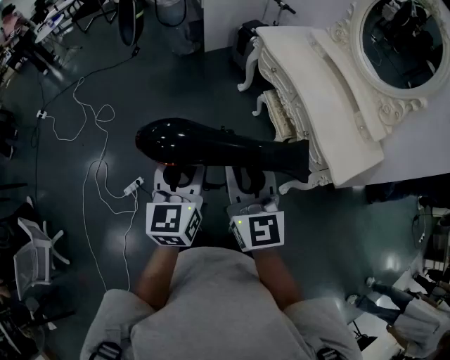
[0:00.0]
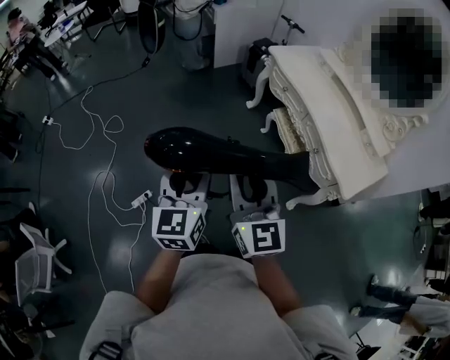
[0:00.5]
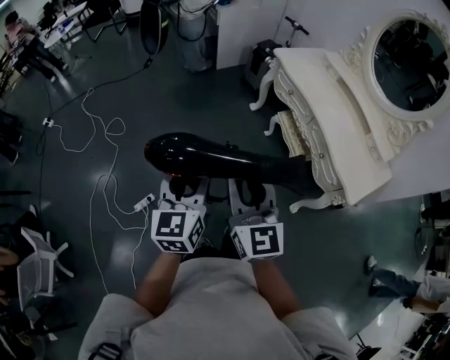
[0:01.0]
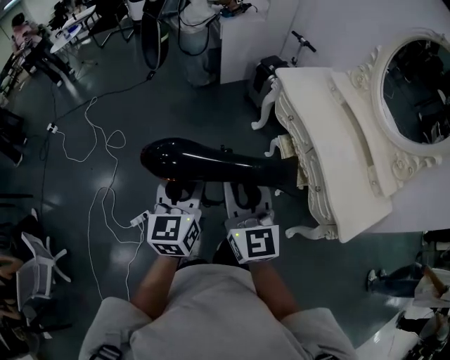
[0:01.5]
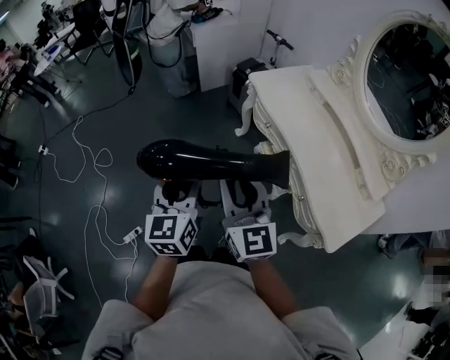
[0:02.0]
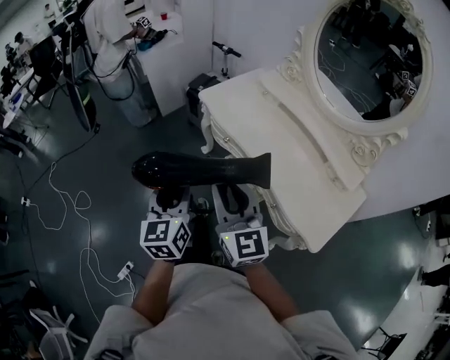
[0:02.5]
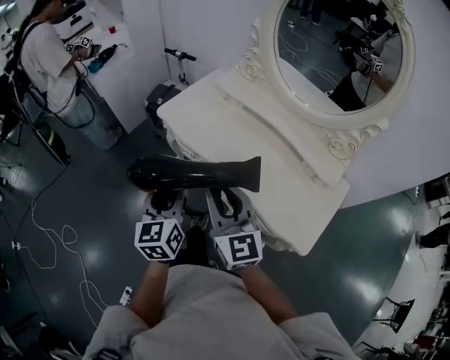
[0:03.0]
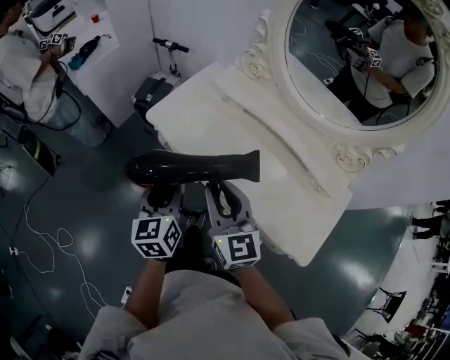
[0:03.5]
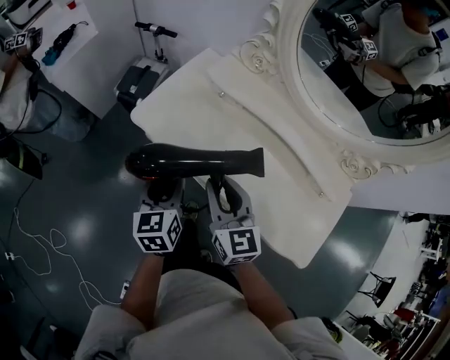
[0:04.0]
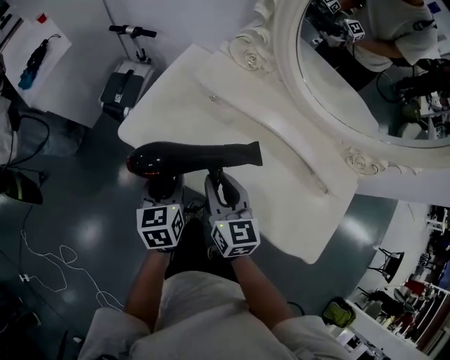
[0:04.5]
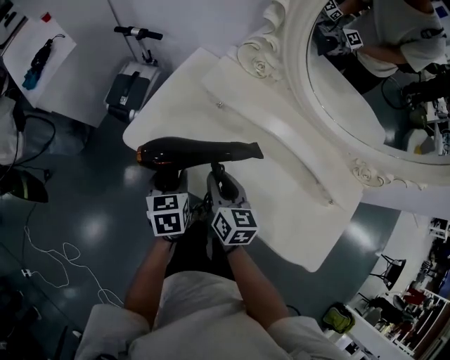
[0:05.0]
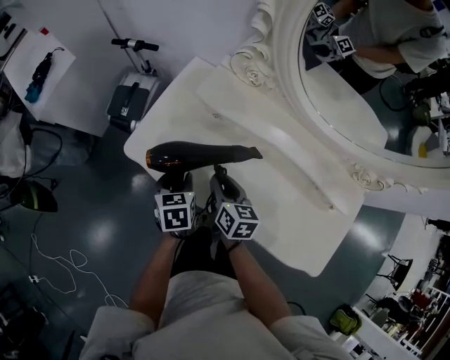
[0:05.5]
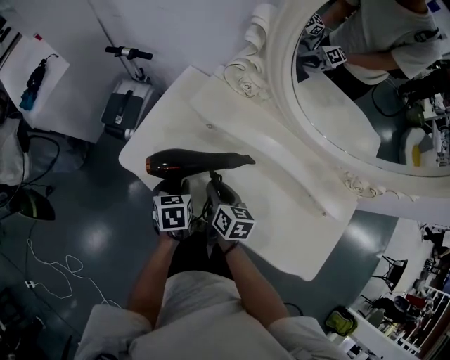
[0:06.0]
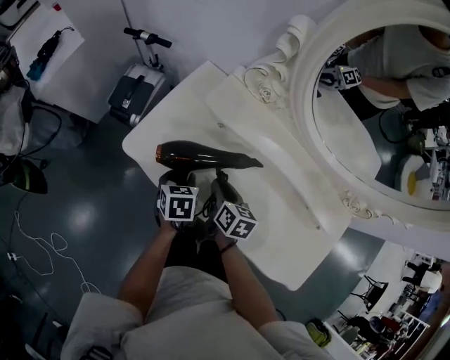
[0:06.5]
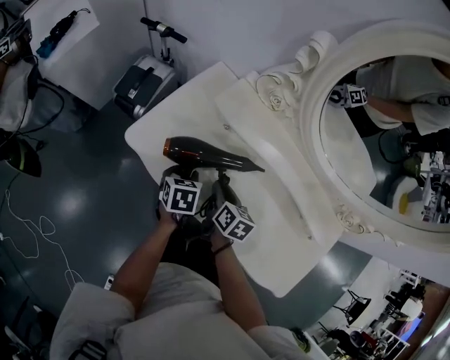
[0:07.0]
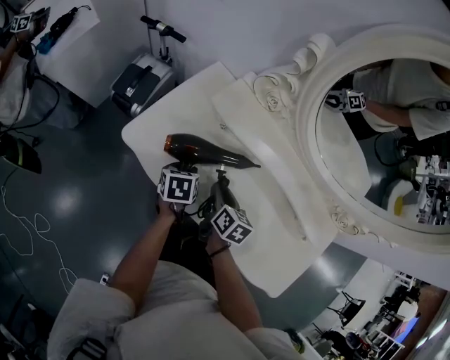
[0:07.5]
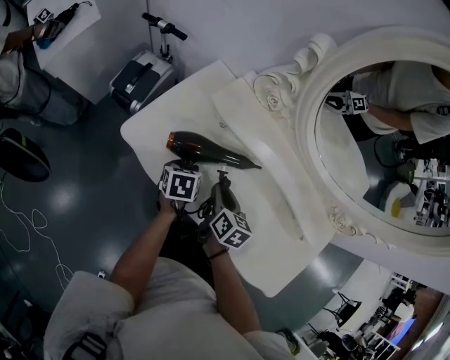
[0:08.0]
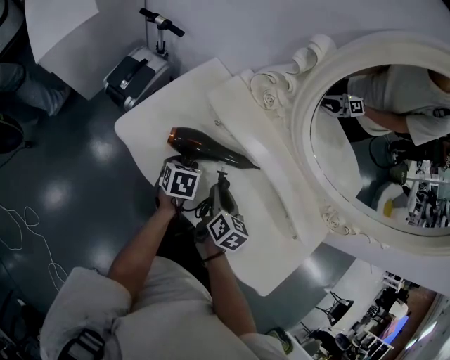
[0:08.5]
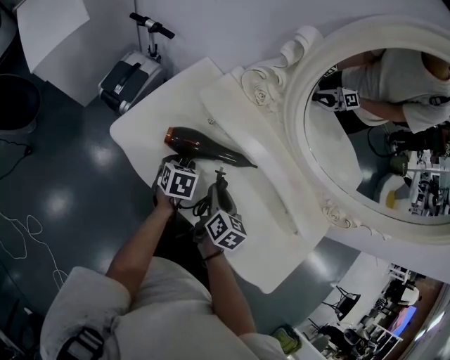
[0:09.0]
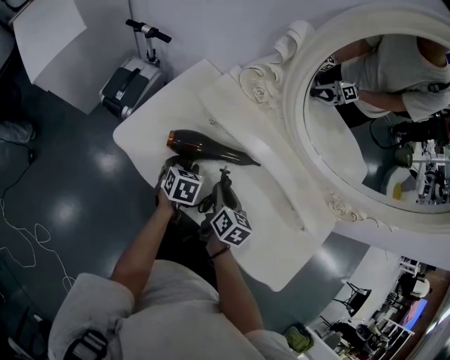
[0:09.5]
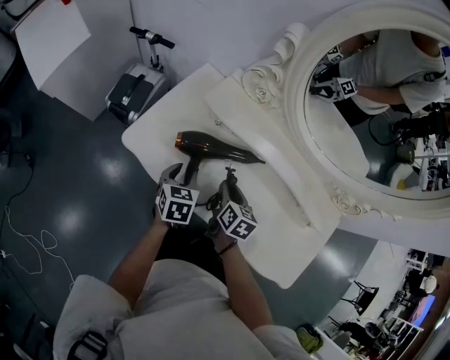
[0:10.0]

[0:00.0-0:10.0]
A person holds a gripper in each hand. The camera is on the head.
0.0 to 2.0 s: Both grippers travel together forward, approximately 25 cm.
2.0 to 4.0 s: Both grippers are carried some 40 cm. The left gripper rotates roughly 30 degrees. Meanwhile the right gripper rotates approximately 40 degrees.
4.0 to 6.0 s: Both grippers move downward and forward, about 20 cm. The right gripper changes its angle by about 40 degrees, while the left gripper swivels approximately 30 degrees.
6.0 to 8.0 s: There are only small adjustments of the grippers.
8.0 to 10.0 s: The left gripper travels upward by approximately 5 cm, and changes its angle by roughly 20 degrees.

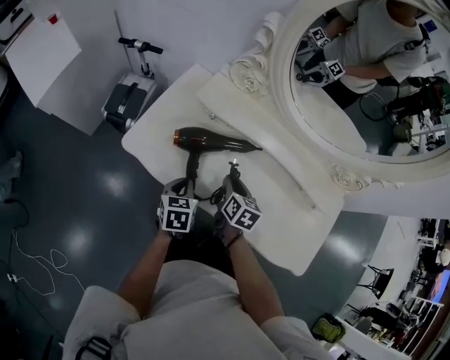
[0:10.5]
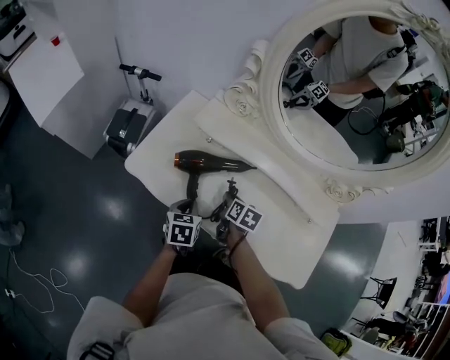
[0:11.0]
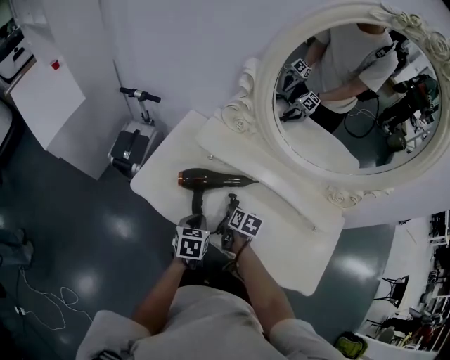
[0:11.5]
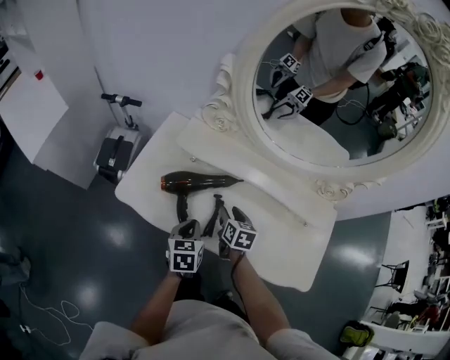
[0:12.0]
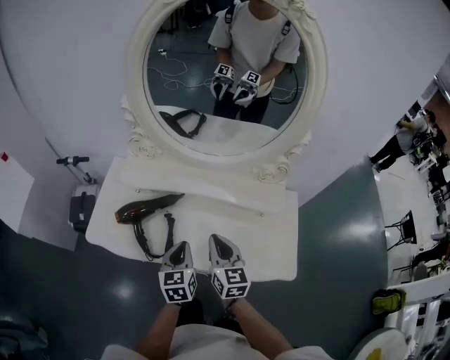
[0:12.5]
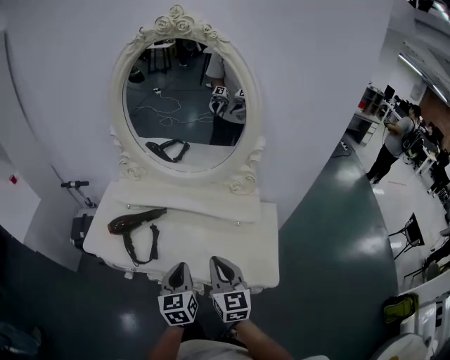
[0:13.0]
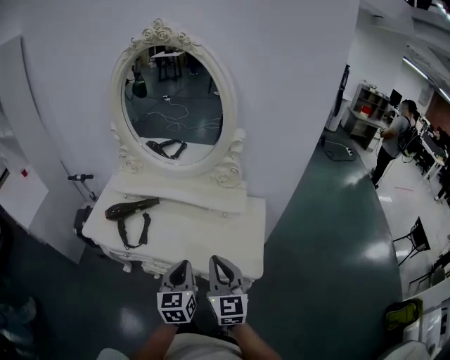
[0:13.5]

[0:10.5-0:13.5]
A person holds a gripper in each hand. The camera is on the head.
10.5 to 12.0 s: The right gripper opens up, while the left gripper travels to the right by roughly 5 cm.
12.0 to 13.5 s: The right gripper moves backward, to the right and upward, some 50 cm, tilts its fingers about 40 degrees upward, and closes. Meanwhile the left gripper moves to the right, backward and upward, roughly 40 cm, and changes its angle by about 30 degrees.

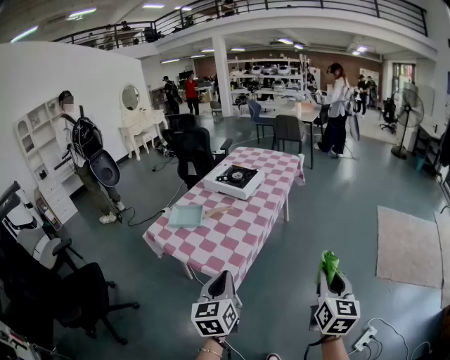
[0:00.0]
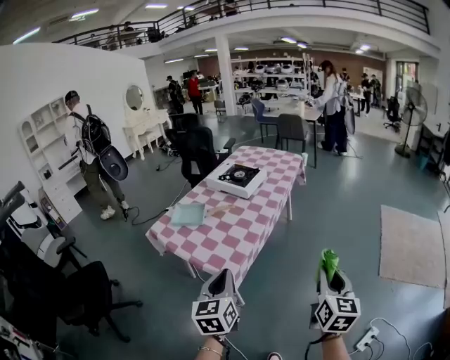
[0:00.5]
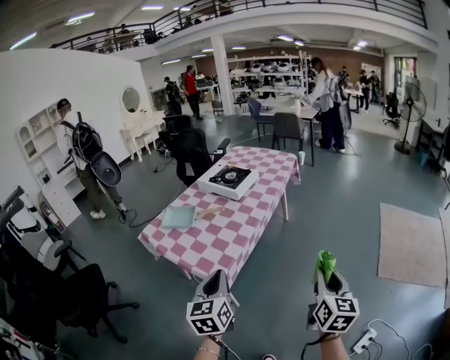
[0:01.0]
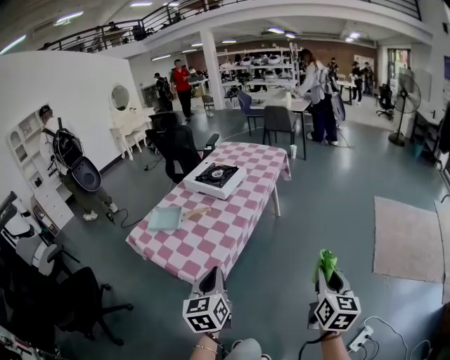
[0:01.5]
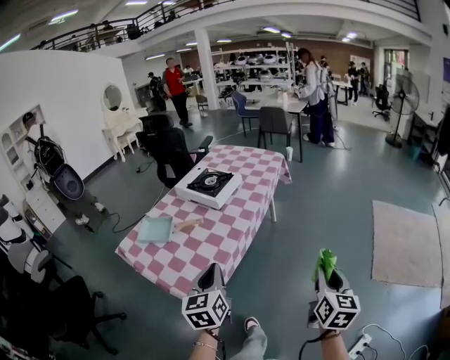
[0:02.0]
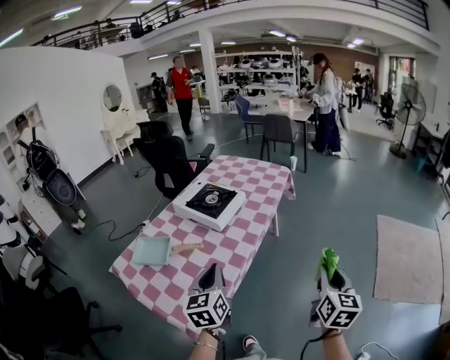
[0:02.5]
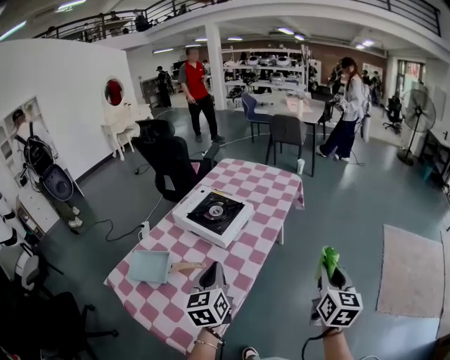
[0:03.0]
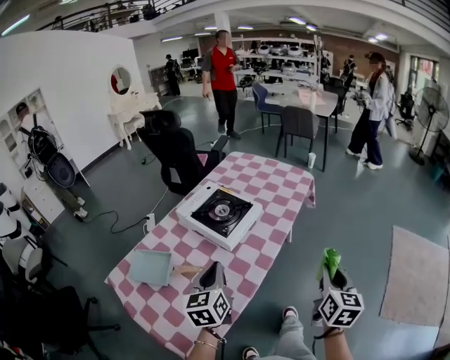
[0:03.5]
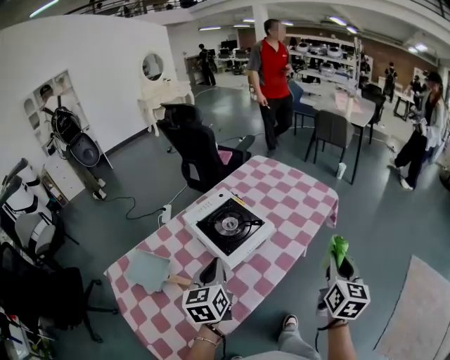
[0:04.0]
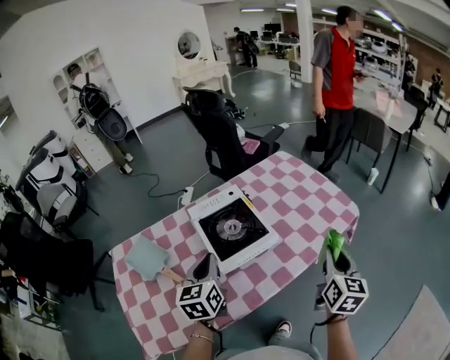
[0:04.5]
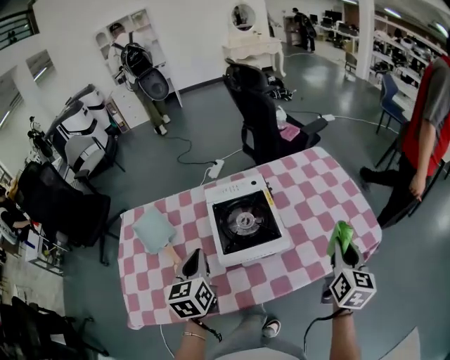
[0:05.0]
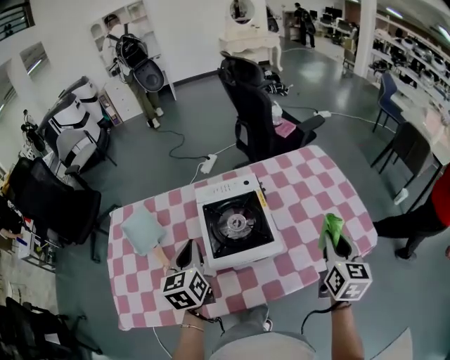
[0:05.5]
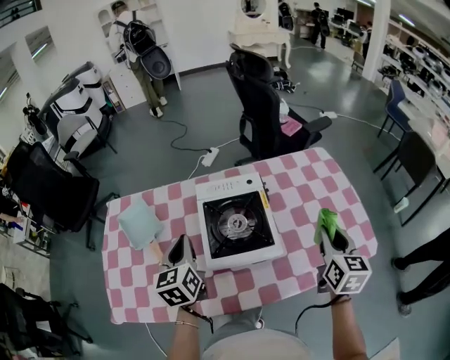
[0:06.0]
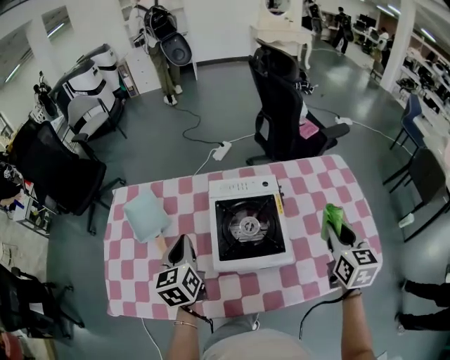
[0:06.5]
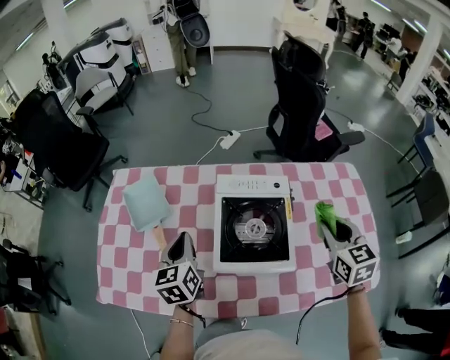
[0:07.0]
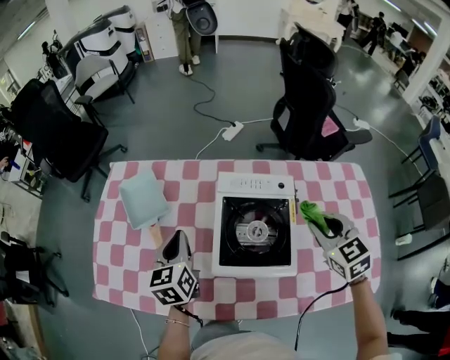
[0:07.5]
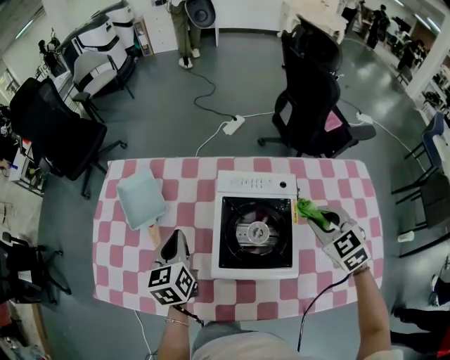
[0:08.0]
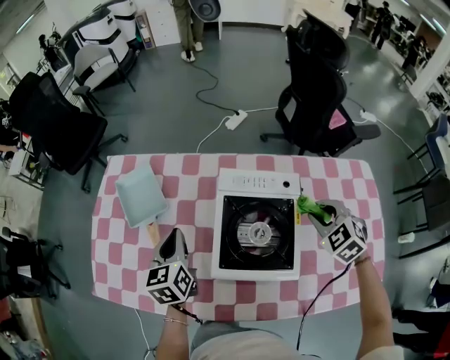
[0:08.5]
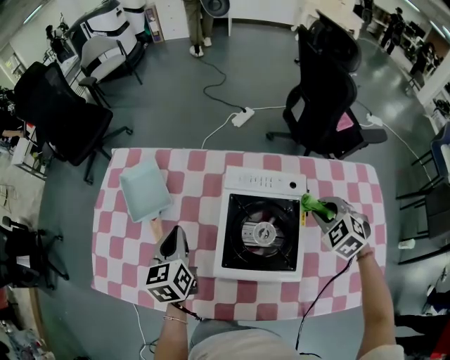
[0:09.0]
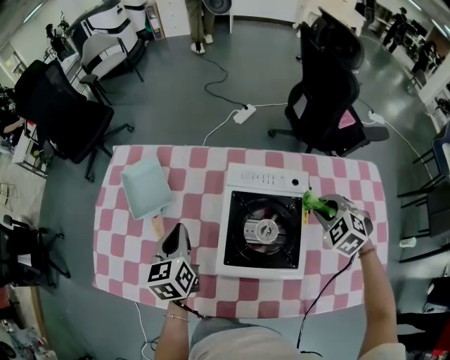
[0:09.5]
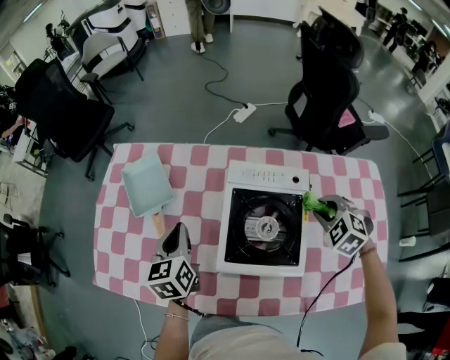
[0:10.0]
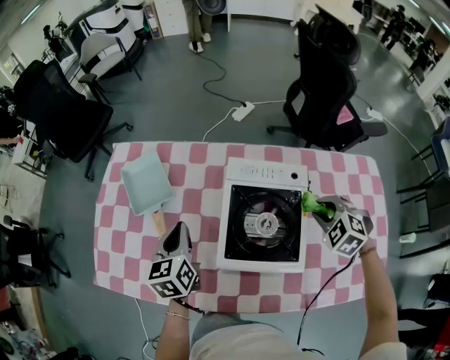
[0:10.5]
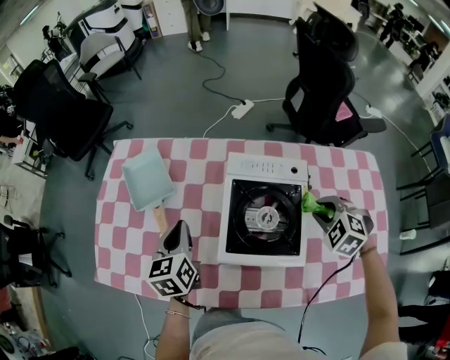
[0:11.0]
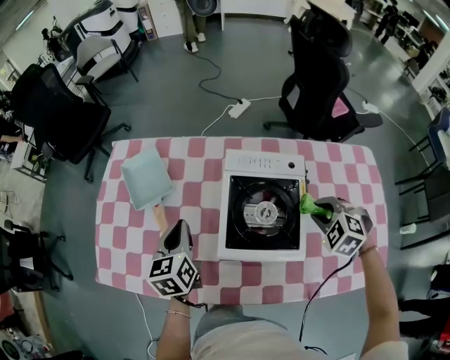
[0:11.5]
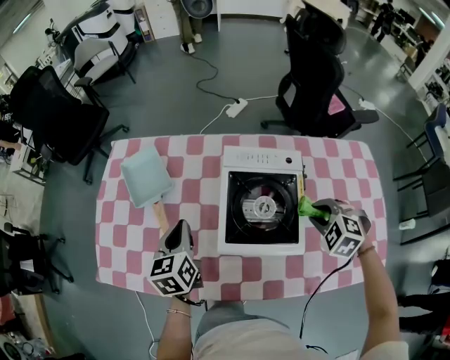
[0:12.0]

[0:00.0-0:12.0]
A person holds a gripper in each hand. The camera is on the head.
0.0 to 2.0 s: Both grippers move forward and to the right, roughly 20 cm.
2.0 to 4.0 s: Both grippers travel together forward, roughly 50 cm.
4.0 to 6.0 s: The left gripper ends up approximately 10 cm from where it was, and turns by roughly 40 degrees. Meanwhile the right gripper moves roughly 35 cm, and swivels roughly 40 degrees.
6.0 to 8.0 s: The right gripper is displaced forward and to the left by roughly 20 cm, and rotates roughly 60 degrees. The left gripper moves downward, to the left and forward, some 10 cm.
8.0 to 10.0 s: The right gripper travels downward by about 5 cm, and swivels roughly 30 degrees.
10.0 to 12.0 s: The right gripper shifts roughly 10 cm backward.

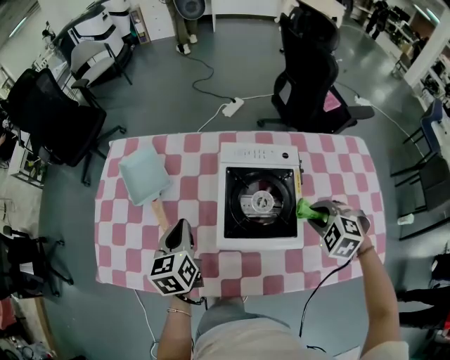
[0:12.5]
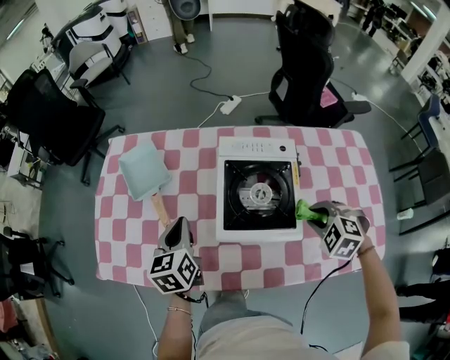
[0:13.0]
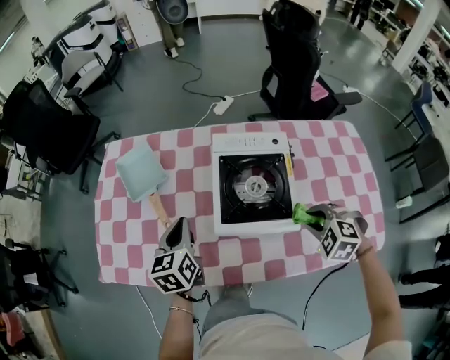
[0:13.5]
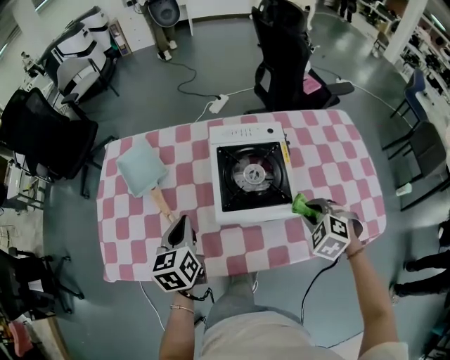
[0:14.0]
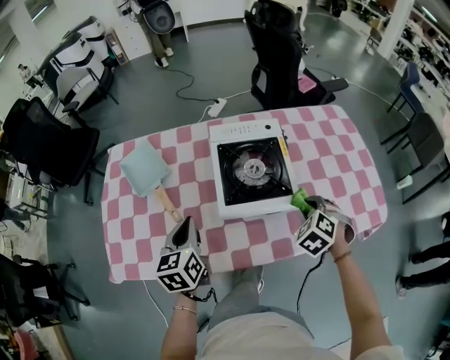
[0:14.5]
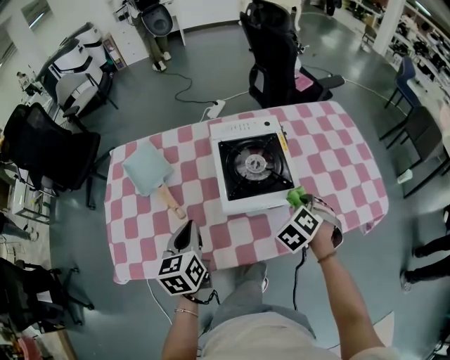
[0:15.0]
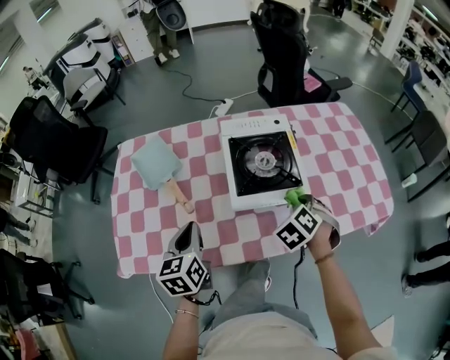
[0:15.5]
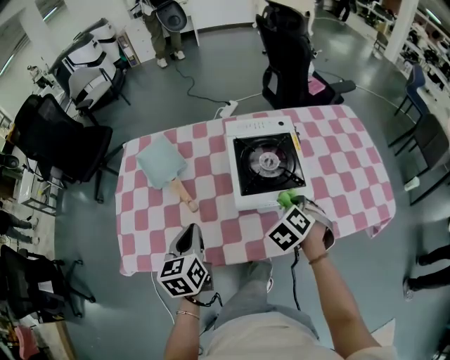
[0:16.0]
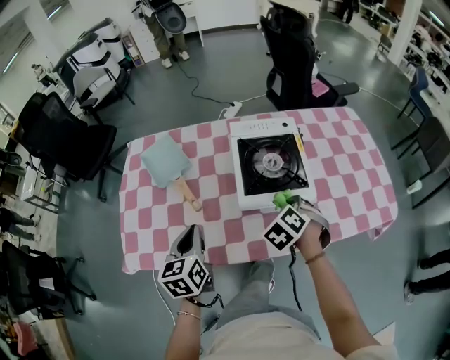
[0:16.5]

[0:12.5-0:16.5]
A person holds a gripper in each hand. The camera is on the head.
12.5 to 14.5 s: The right gripper ends up roughly 10 cm from where it was, and turns by roughly 30 degrees; the left gripper changes place by approximately 10 cm.
14.5 to 16.5 s: The right gripper moves to the left, some 10 cm; the left gripper heads backward, covering about 5 cm.
